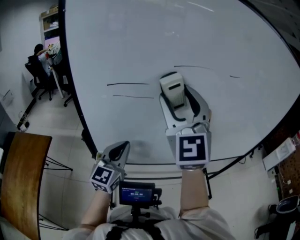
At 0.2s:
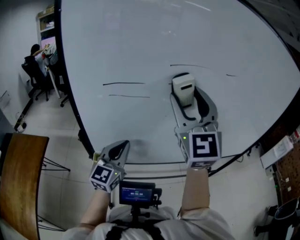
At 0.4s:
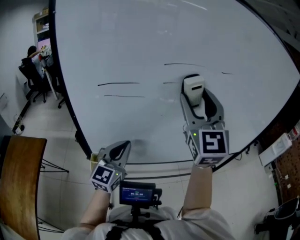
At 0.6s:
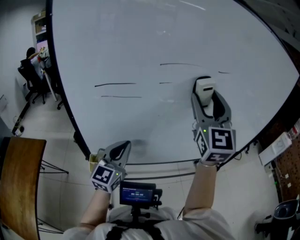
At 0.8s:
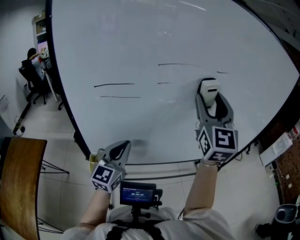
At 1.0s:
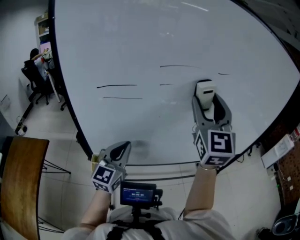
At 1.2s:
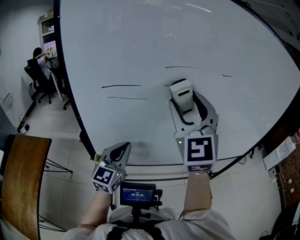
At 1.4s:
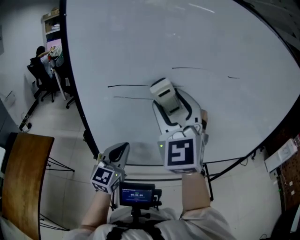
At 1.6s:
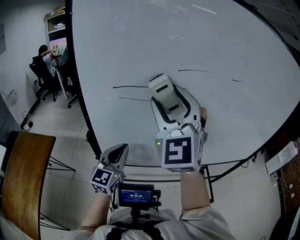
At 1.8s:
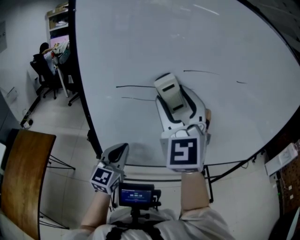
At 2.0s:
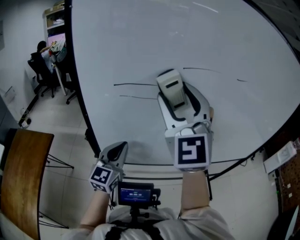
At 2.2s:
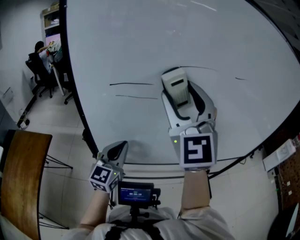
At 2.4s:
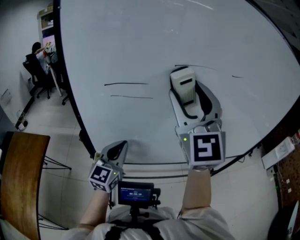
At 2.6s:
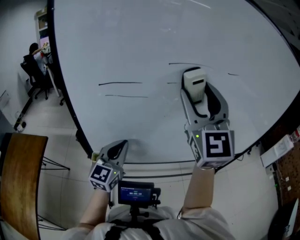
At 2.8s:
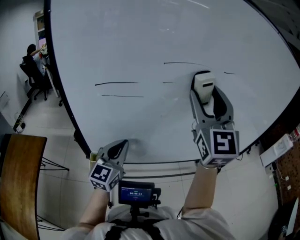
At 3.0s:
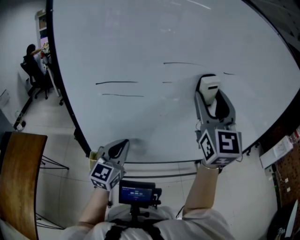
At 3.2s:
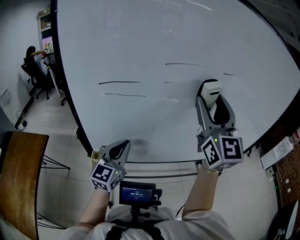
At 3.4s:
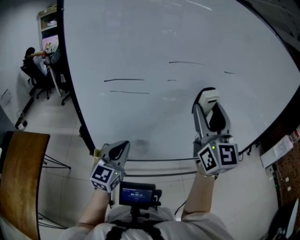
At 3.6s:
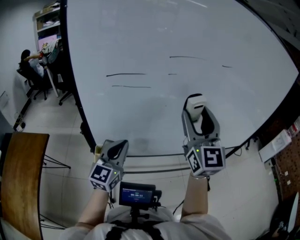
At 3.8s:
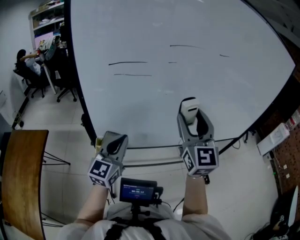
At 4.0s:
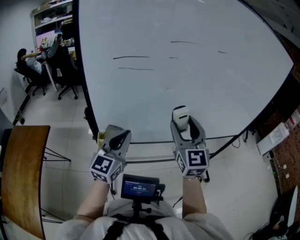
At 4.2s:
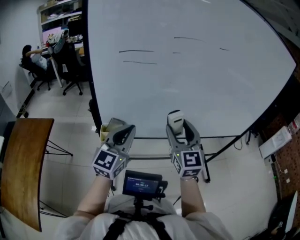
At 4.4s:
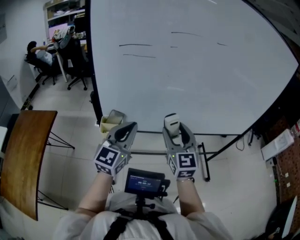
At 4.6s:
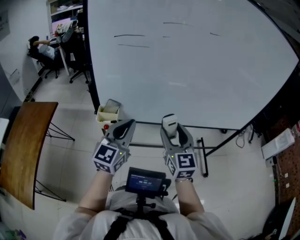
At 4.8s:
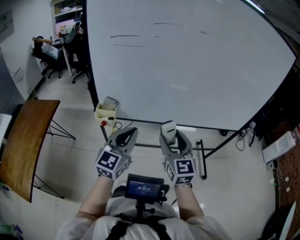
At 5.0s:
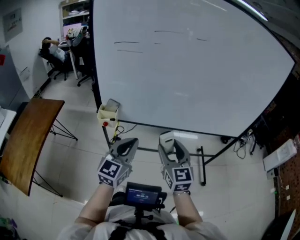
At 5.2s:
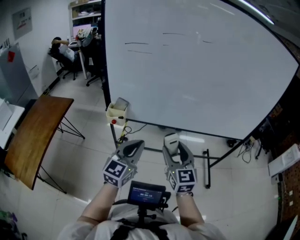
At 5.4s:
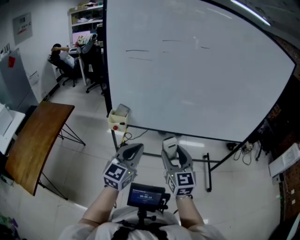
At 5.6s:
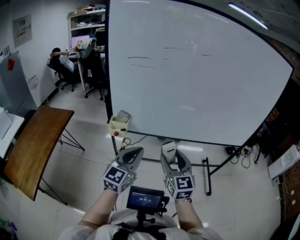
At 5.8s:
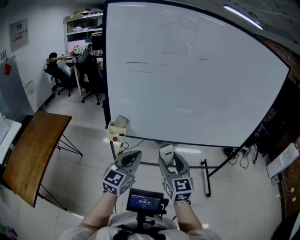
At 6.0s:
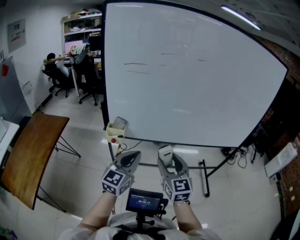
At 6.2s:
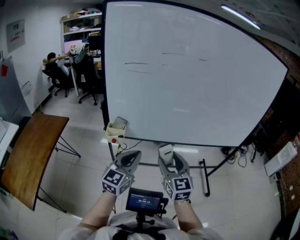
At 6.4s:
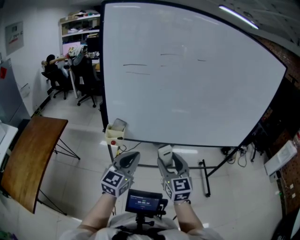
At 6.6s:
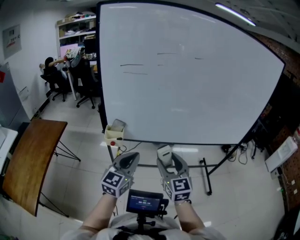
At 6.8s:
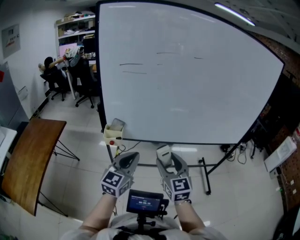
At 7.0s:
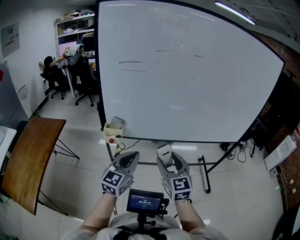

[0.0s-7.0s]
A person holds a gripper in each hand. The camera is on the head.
0.0s to 1.4s: The right gripper travels to the right and back again, some 15 cm each way.
1.4s to 2.8s: The right gripper is displaced to the right by about 10 cm.
2.8s to 4.2s: The left gripper moves backward, roughly 10 cm. The right gripper travels downward and backward by some 25 cm.
4.2s to 5.6s: The right gripper shifts about 15 cm backward and downward, while the left gripper travels backward and to the right by about 15 cm.
5.6s to 7.0s: The grippers stay close to where they were, moving slightly.

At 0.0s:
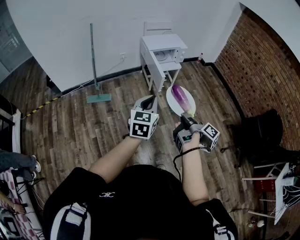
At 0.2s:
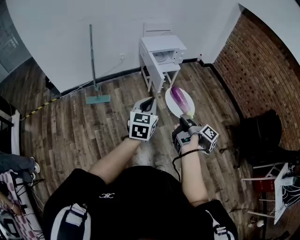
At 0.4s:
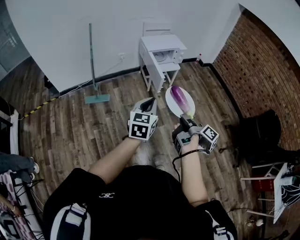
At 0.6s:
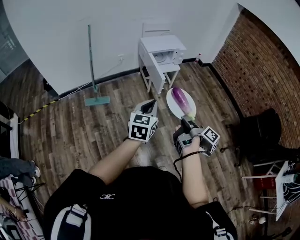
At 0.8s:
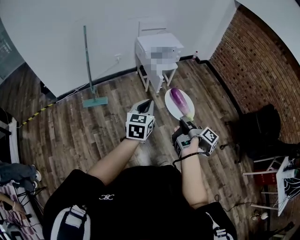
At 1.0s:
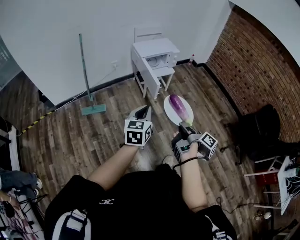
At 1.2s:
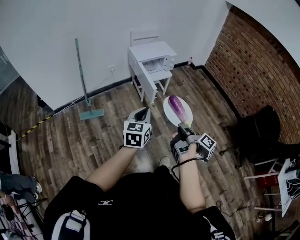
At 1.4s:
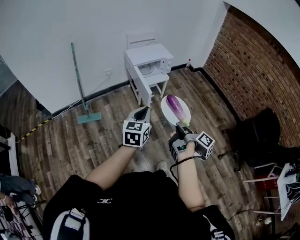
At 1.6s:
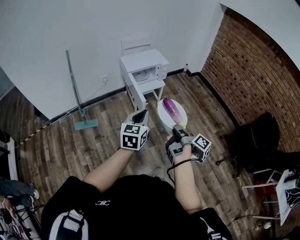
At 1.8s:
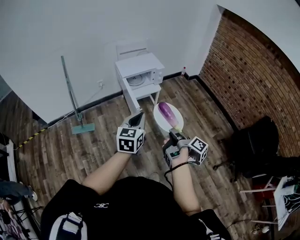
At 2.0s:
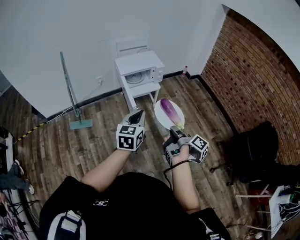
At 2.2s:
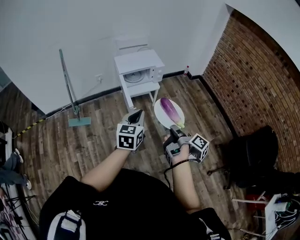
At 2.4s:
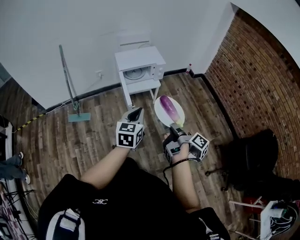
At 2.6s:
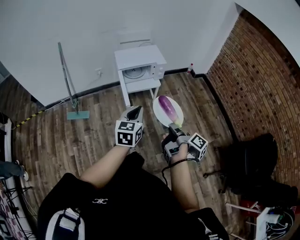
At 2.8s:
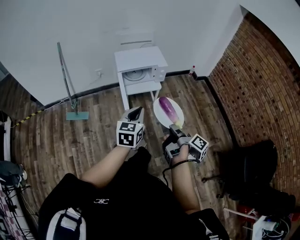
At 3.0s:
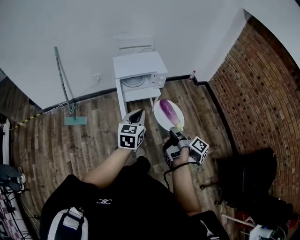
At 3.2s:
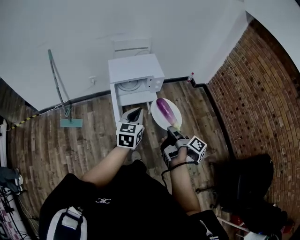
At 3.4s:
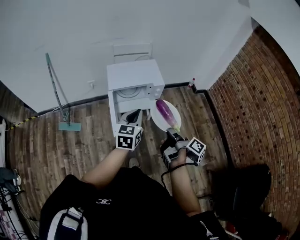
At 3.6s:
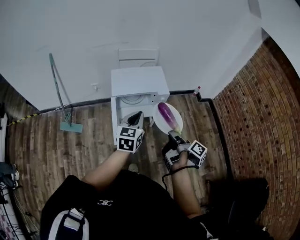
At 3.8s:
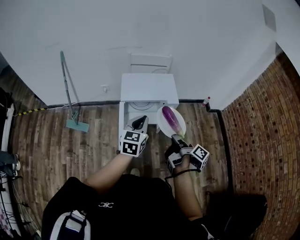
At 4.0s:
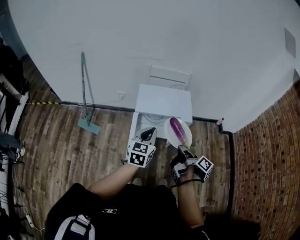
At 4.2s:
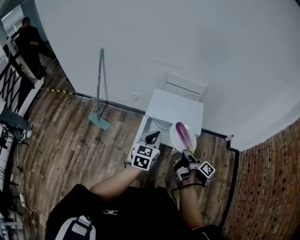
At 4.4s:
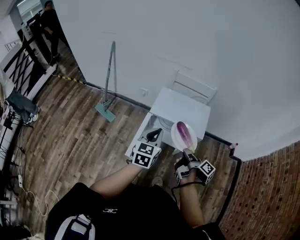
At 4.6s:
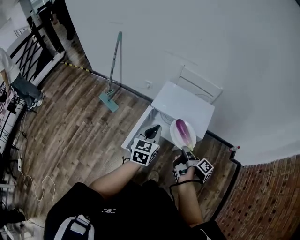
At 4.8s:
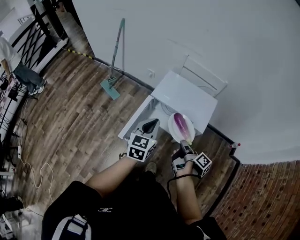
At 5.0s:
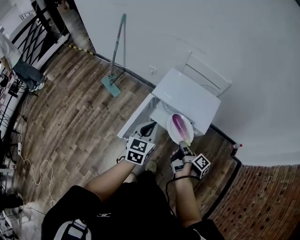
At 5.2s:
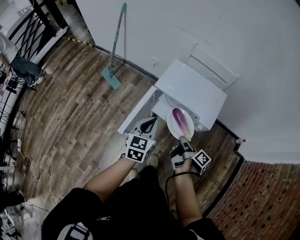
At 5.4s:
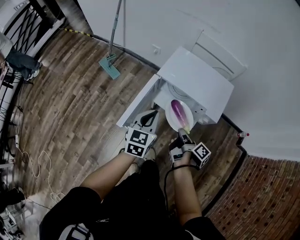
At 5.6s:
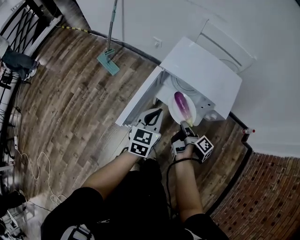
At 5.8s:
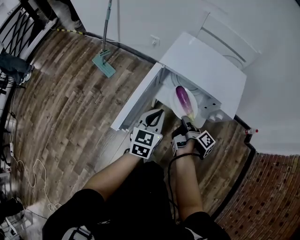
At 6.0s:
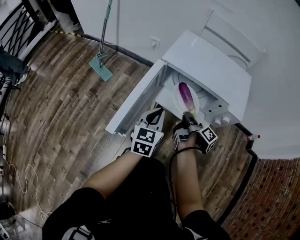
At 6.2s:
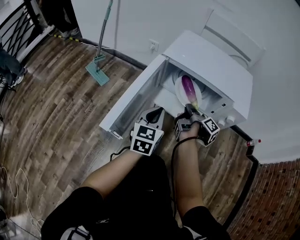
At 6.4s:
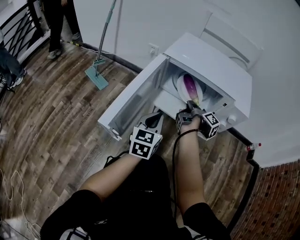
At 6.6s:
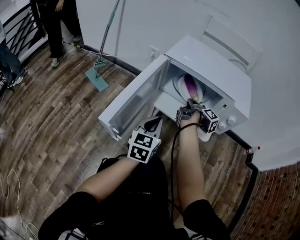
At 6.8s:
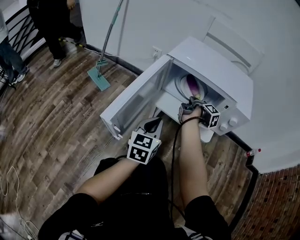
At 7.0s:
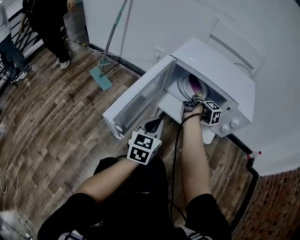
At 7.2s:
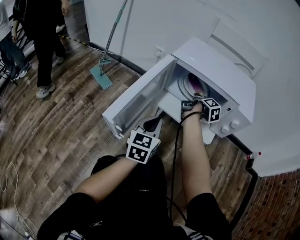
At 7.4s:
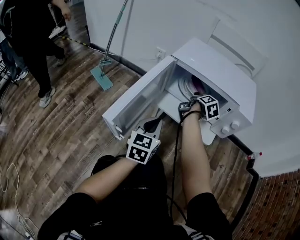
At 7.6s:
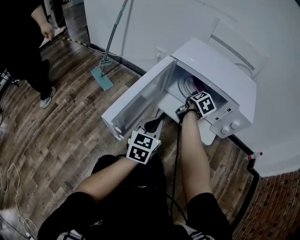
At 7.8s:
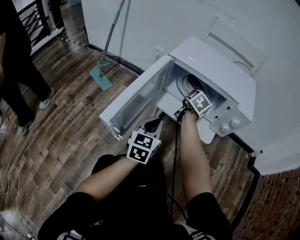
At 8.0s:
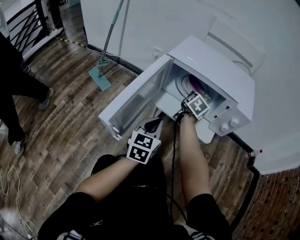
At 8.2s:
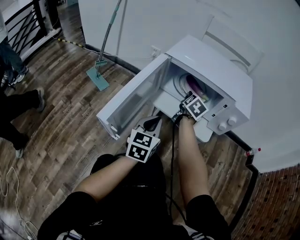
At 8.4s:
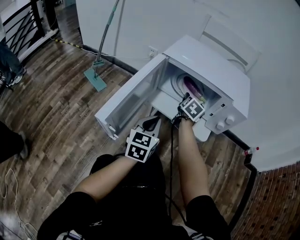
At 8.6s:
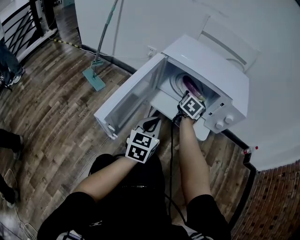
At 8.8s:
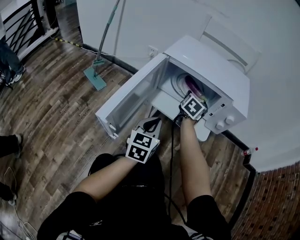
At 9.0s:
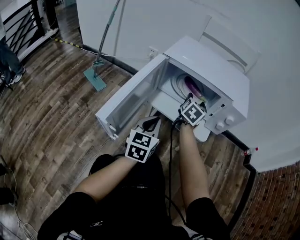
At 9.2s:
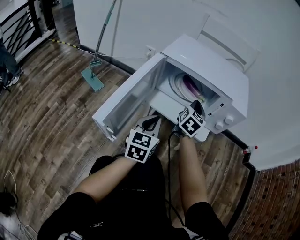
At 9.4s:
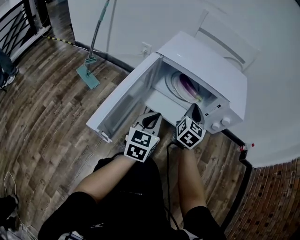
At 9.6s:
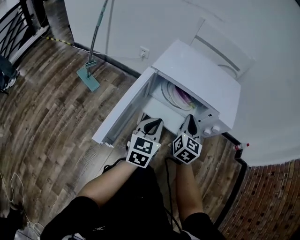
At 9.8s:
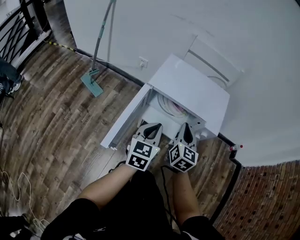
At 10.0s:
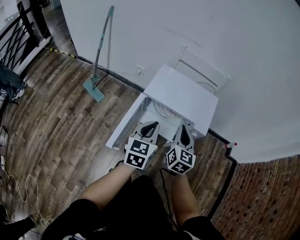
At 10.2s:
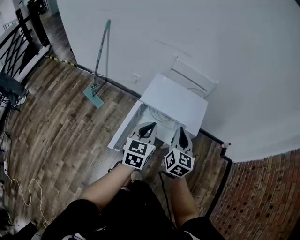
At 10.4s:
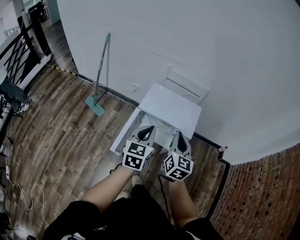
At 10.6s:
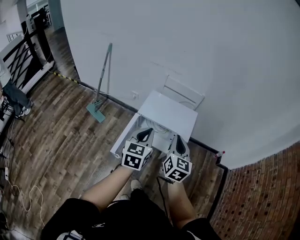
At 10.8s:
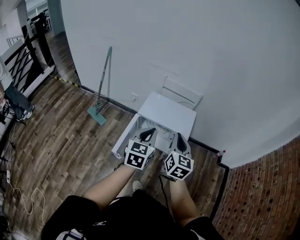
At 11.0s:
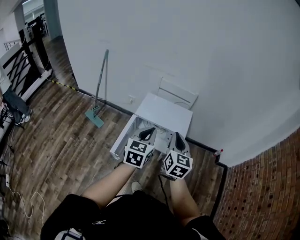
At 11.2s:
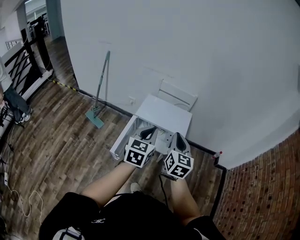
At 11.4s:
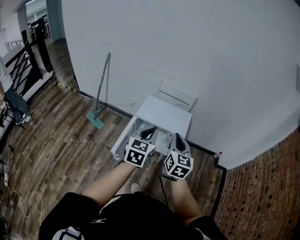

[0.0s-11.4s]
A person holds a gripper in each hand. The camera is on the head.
0.0s to 1.4s: The left gripper moves about 10 cm.
1.4s to 2.8s: The left gripper changes place by about 25 cm.
2.8s to 4.2s: The left gripper shifts by approximately 30 cm, and changes its angle by approximately 20 degrees.
4.2s to 5.6s: The left gripper is displaced downward by roughly 20 cm.
5.6s to 7.2s: The left gripper is displaced downward by approximately 20 cm.
8.6s to 10.0s: The left gripper goes approximately 30 cm upward.
10.0s to 11.4s: The left gripper is displaced upward by some 25 cm.

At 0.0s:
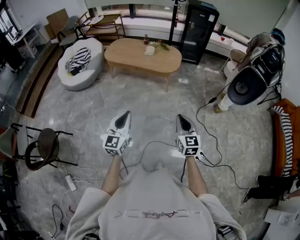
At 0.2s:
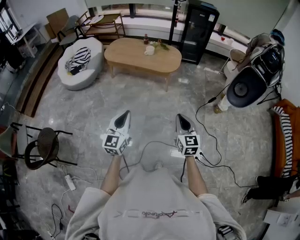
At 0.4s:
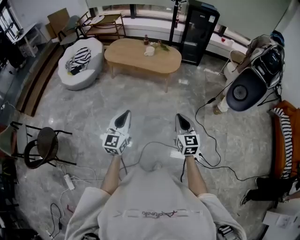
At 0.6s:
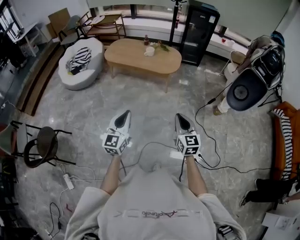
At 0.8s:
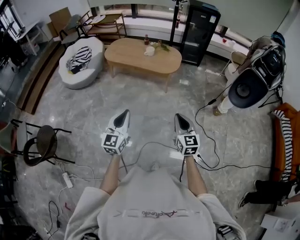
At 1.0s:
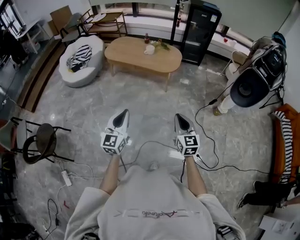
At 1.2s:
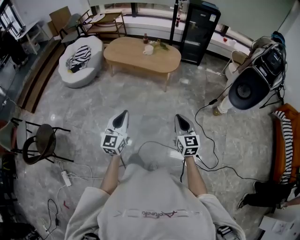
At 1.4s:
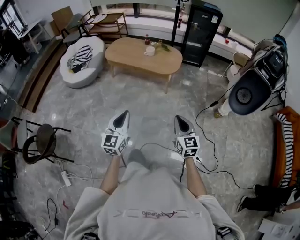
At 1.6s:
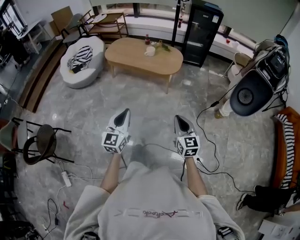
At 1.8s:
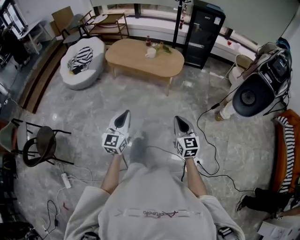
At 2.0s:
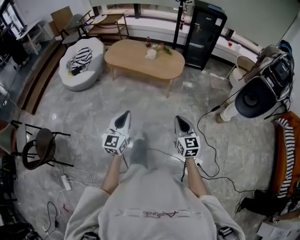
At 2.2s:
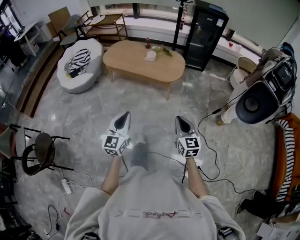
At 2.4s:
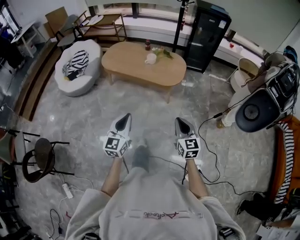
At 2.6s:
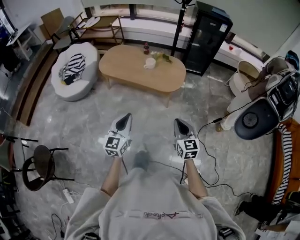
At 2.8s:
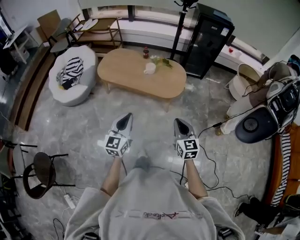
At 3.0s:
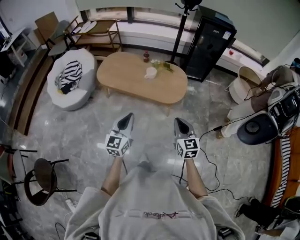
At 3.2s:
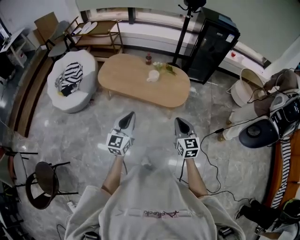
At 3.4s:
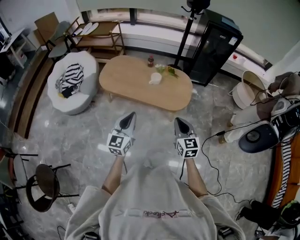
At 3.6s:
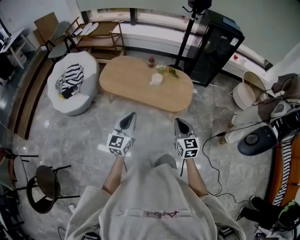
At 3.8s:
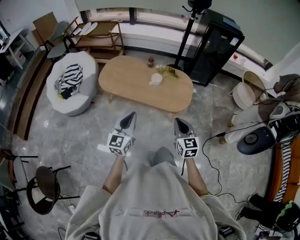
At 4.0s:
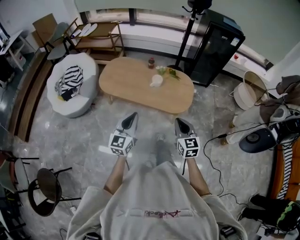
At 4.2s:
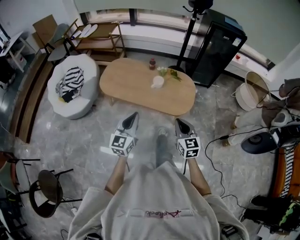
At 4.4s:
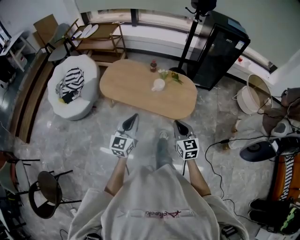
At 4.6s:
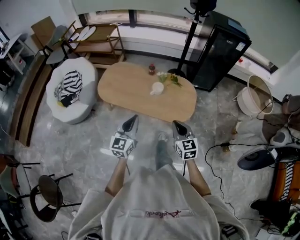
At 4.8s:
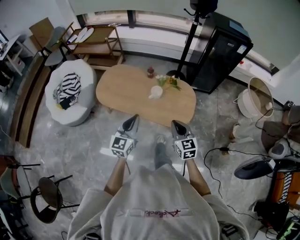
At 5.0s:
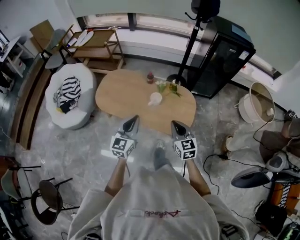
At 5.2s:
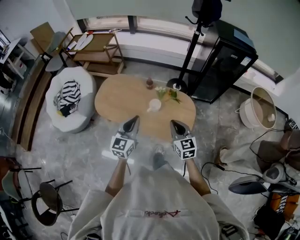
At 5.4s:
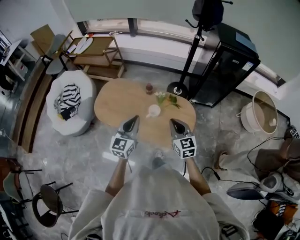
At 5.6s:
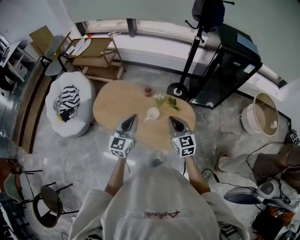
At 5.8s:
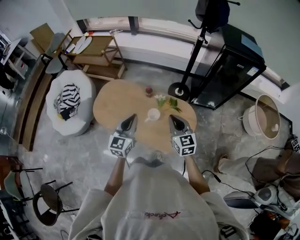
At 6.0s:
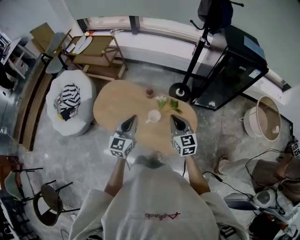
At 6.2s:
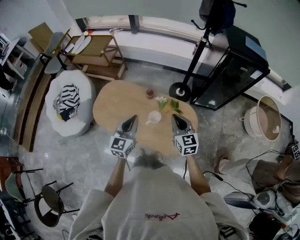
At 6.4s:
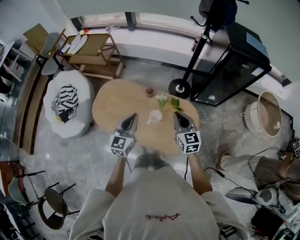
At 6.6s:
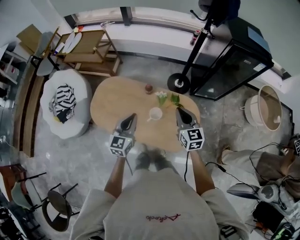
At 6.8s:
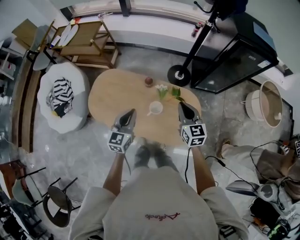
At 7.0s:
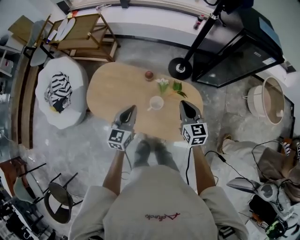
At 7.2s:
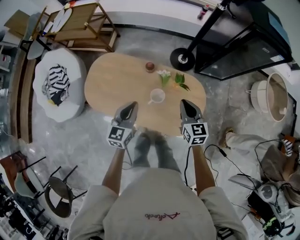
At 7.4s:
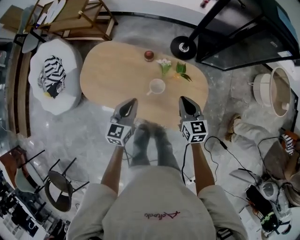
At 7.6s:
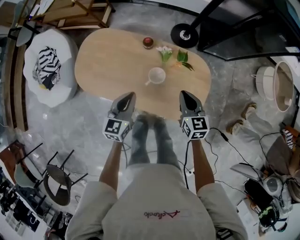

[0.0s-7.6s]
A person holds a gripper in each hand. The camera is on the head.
0.0s to 1.6s: The two grippers go about 5 cm to the right.
1.6s to 3.0s: Both grippers are carried forward, roughly 40 cm.
3.0s to 4.6s: Both grippers move forward, approximately 20 cm.
4.6s to 6.0s: The grippers both shift forward by approximately 35 cm.
6.0s to 7.6s: The grippers both shift downward by approximately 20 cm.
